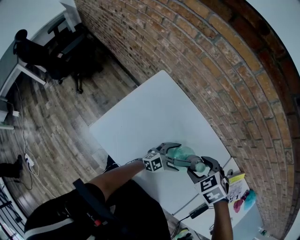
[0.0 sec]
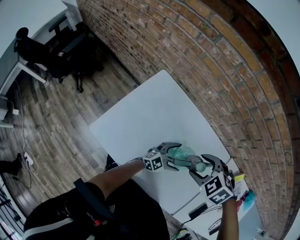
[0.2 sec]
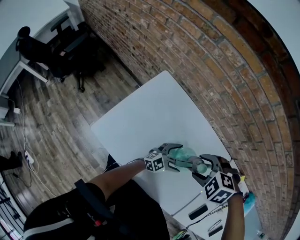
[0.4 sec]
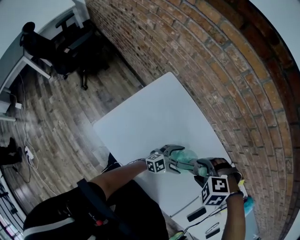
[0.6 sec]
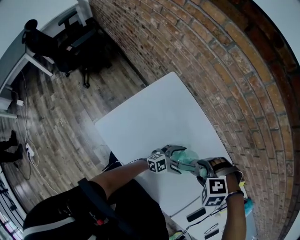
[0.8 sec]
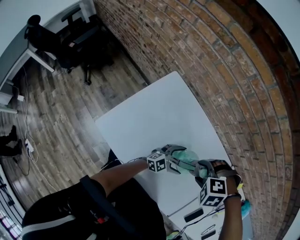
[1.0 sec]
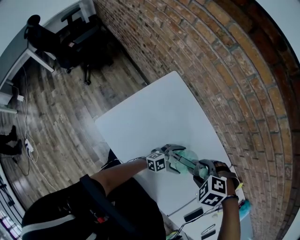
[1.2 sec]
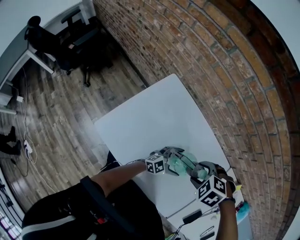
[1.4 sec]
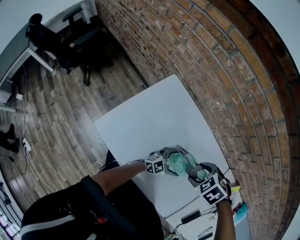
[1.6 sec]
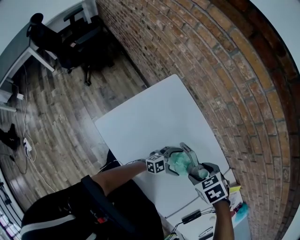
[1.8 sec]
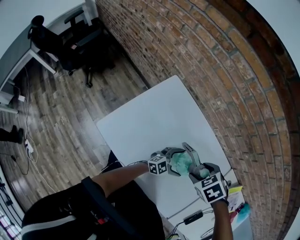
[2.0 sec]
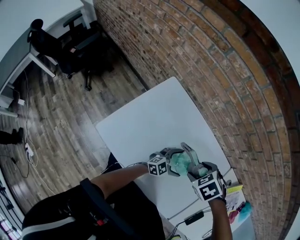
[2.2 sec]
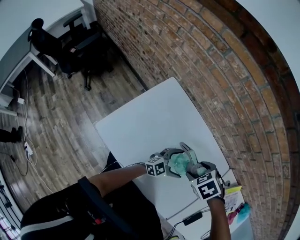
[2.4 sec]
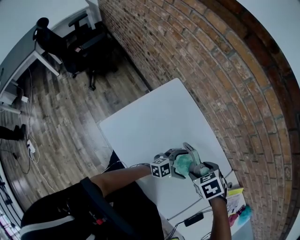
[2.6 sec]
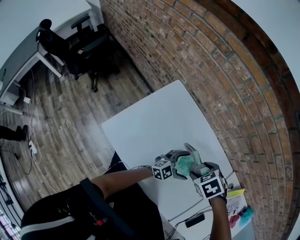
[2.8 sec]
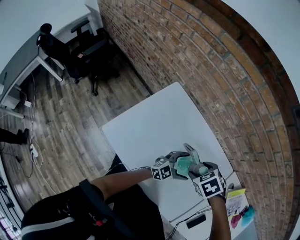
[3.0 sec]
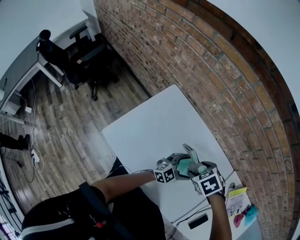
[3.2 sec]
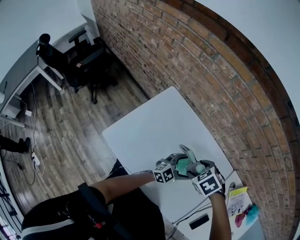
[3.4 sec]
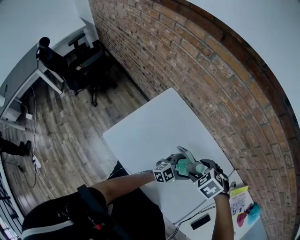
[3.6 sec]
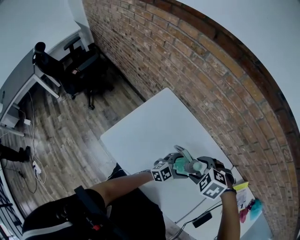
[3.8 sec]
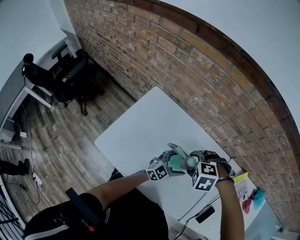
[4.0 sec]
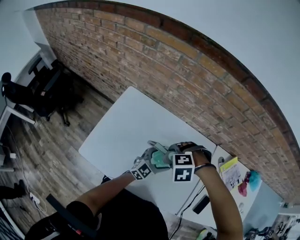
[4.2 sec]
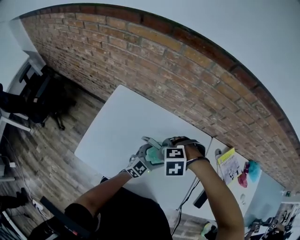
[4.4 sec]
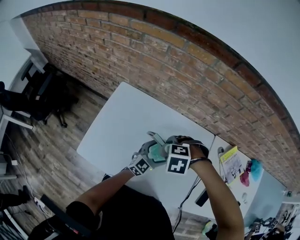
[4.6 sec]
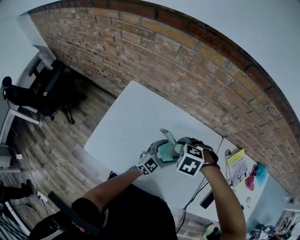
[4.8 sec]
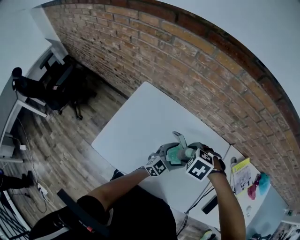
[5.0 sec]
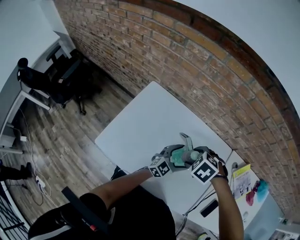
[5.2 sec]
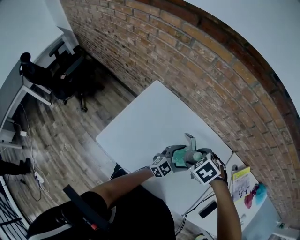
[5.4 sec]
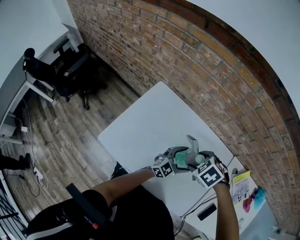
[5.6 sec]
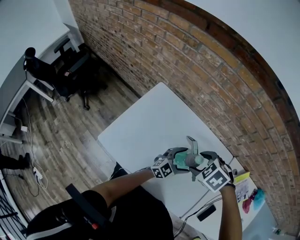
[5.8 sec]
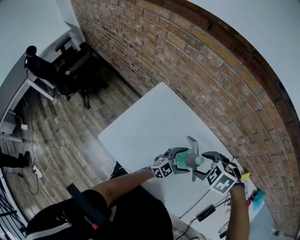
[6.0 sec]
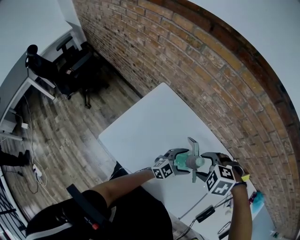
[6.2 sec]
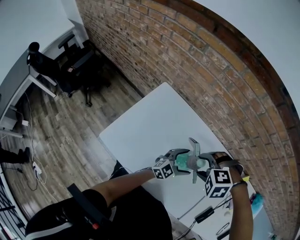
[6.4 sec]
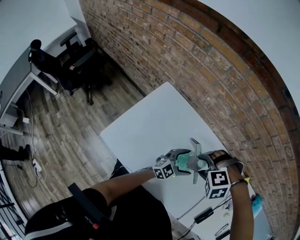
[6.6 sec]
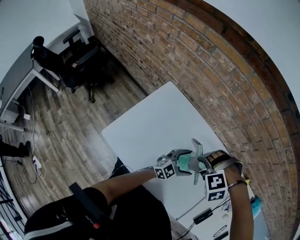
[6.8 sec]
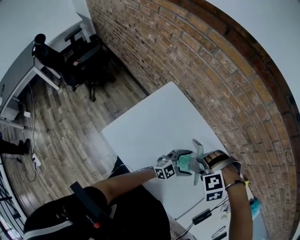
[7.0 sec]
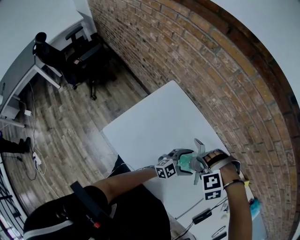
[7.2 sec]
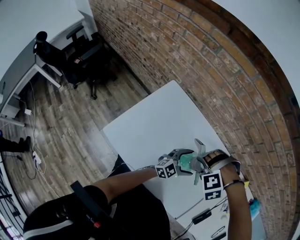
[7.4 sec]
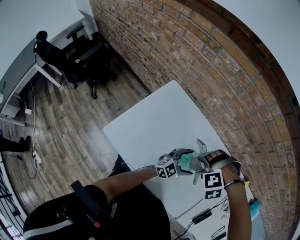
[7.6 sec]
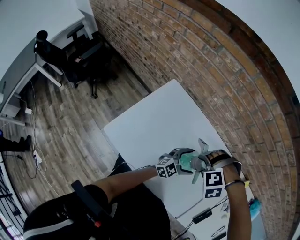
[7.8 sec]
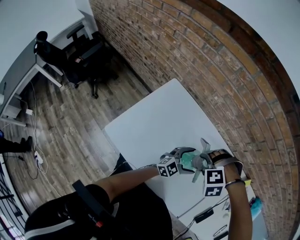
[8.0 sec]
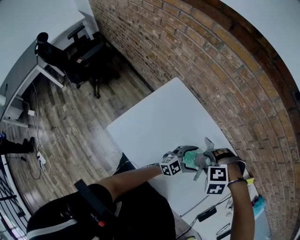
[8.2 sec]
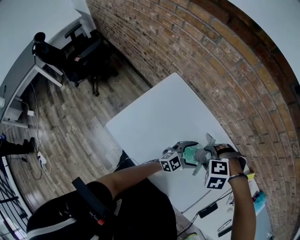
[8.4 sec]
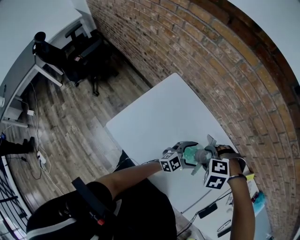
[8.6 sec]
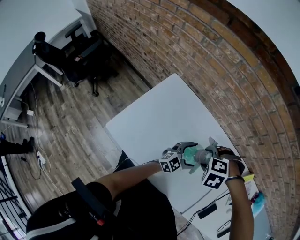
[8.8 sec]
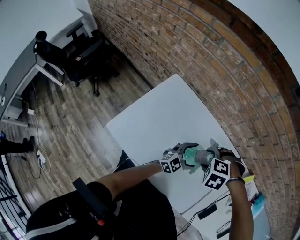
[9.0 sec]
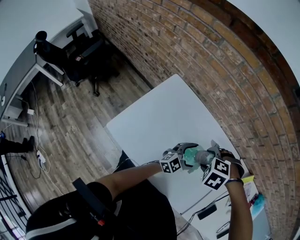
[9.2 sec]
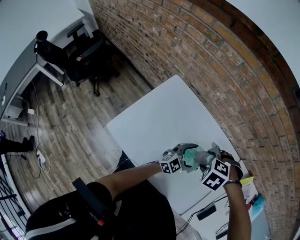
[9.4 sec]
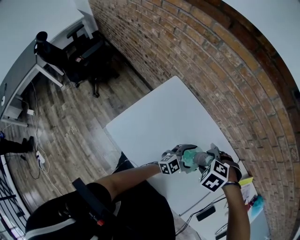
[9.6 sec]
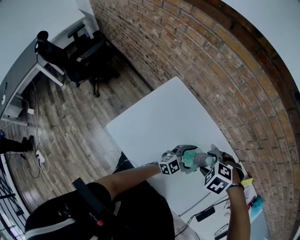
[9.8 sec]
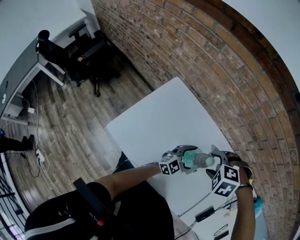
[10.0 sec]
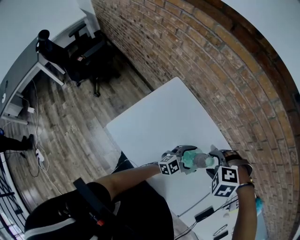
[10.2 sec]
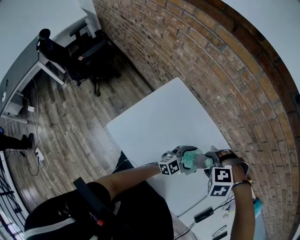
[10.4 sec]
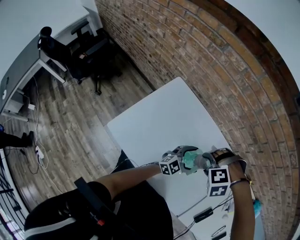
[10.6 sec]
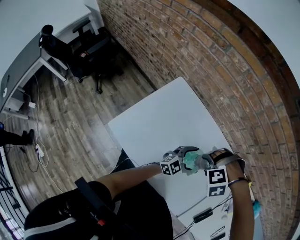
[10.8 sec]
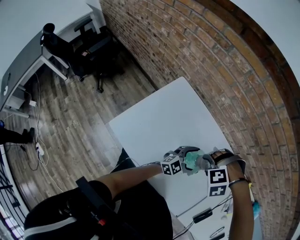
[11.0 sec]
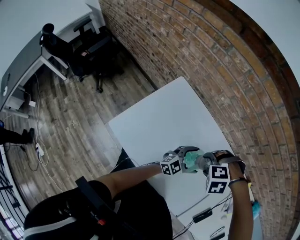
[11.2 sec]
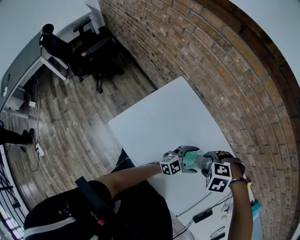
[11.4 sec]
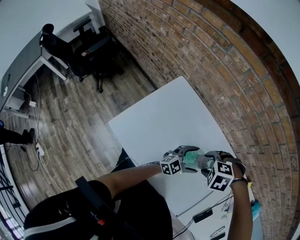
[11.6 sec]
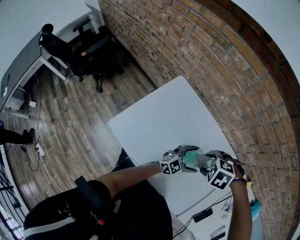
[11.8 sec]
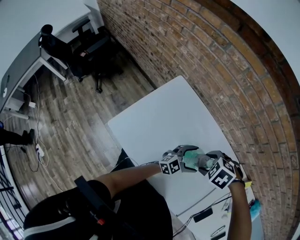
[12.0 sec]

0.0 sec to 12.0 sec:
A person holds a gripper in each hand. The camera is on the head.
1.6 sec to 3.0 sec: The left gripper goes about 5 cm upward.
3.0 sec to 4.4 sec: The right gripper twists approximately 40 degrees counterclockwise, seen from behind.
4.4 sec to 6.0 sec: The right gripper goes about 5 cm upward.
6.0 sec to 7.6 sec: The right gripper rolls counterclockwise, seen from behind, by about 50 degrees.
7.6 sec to 9.0 sec: The right gripper rotates roughly 30 degrees.
9.0 sec to 10.4 sec: The grippers stay close to where they were, moving slightly.
10.4 sec to 12.0 sec: The right gripper changes its angle by some 30 degrees.

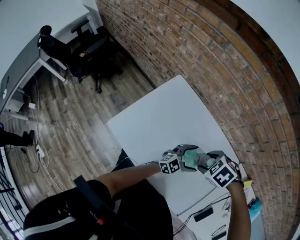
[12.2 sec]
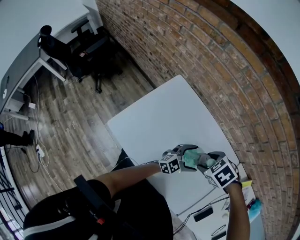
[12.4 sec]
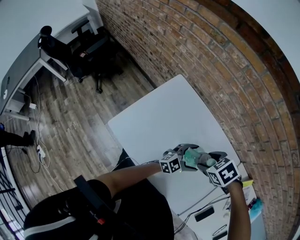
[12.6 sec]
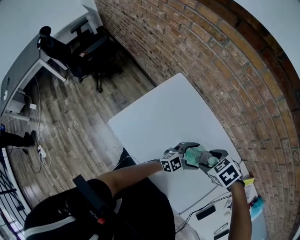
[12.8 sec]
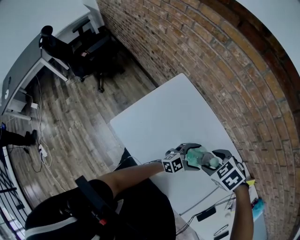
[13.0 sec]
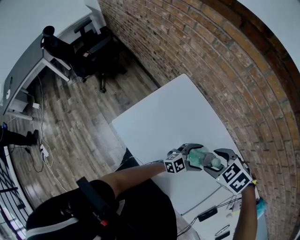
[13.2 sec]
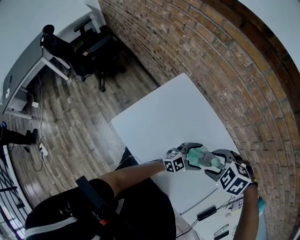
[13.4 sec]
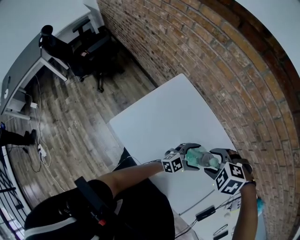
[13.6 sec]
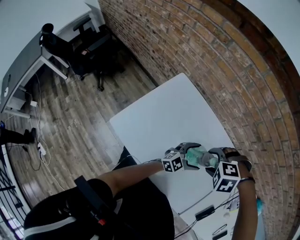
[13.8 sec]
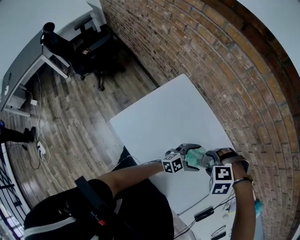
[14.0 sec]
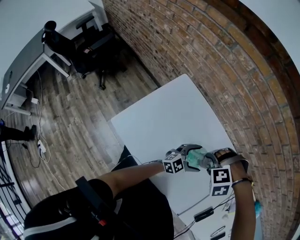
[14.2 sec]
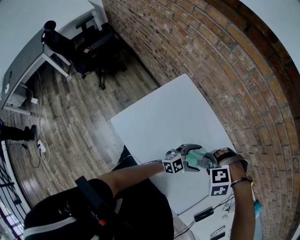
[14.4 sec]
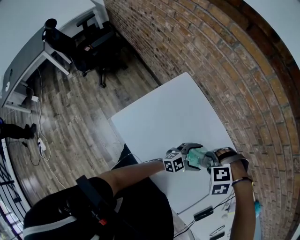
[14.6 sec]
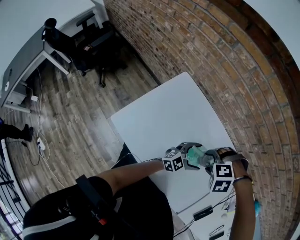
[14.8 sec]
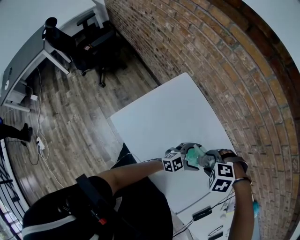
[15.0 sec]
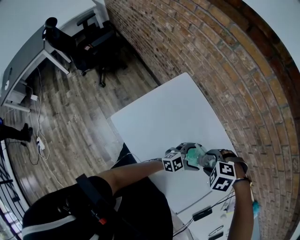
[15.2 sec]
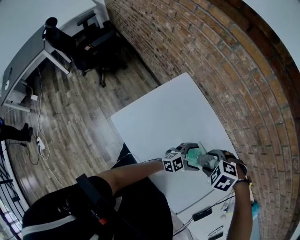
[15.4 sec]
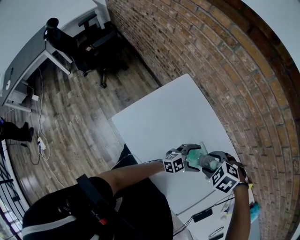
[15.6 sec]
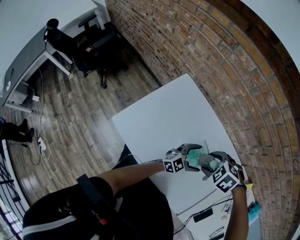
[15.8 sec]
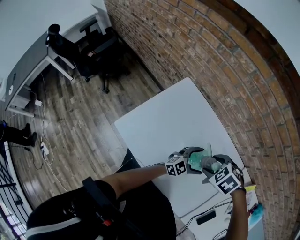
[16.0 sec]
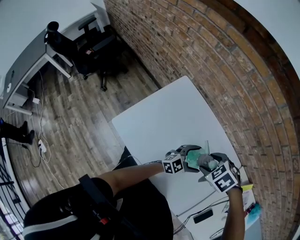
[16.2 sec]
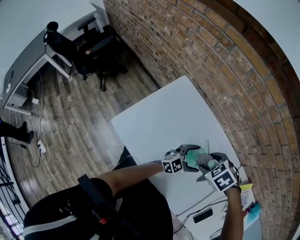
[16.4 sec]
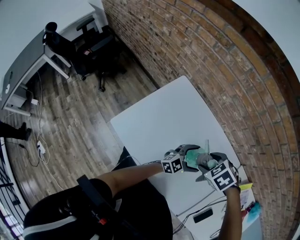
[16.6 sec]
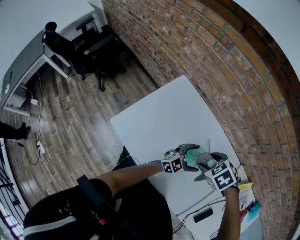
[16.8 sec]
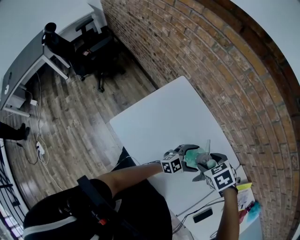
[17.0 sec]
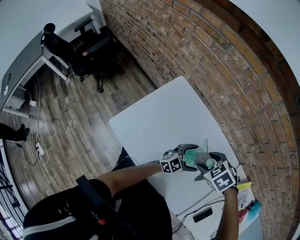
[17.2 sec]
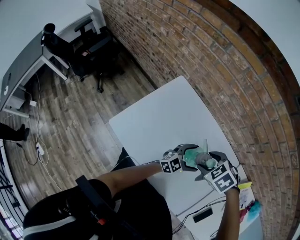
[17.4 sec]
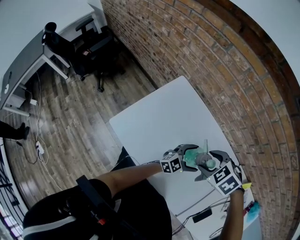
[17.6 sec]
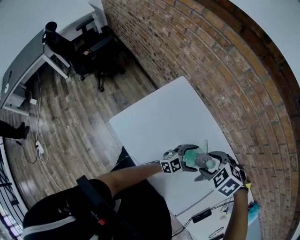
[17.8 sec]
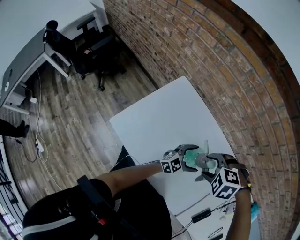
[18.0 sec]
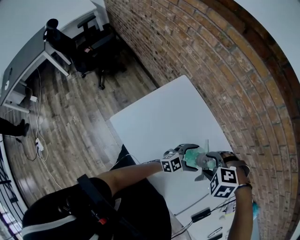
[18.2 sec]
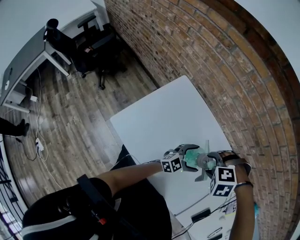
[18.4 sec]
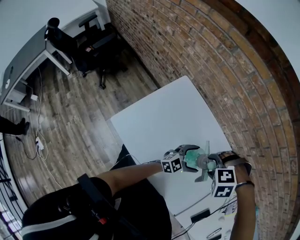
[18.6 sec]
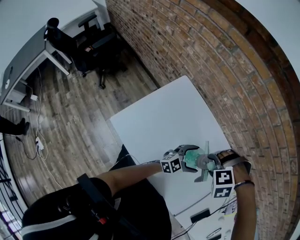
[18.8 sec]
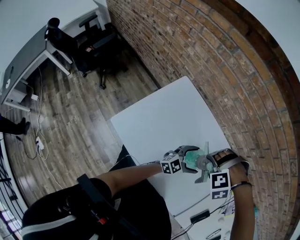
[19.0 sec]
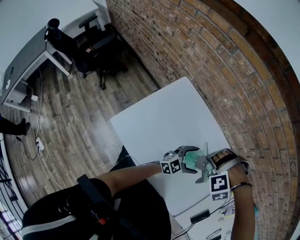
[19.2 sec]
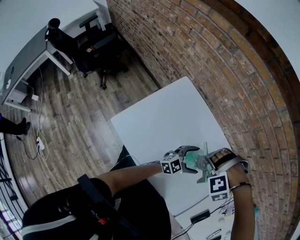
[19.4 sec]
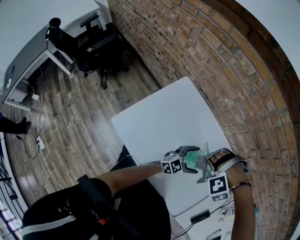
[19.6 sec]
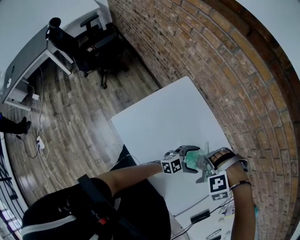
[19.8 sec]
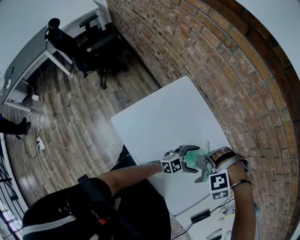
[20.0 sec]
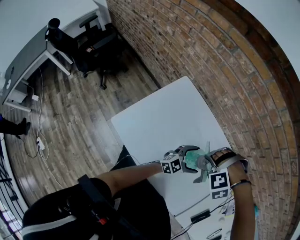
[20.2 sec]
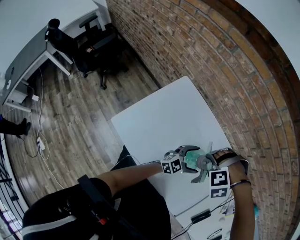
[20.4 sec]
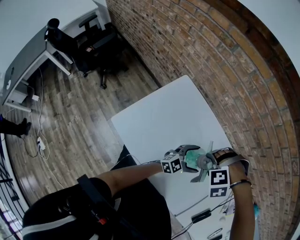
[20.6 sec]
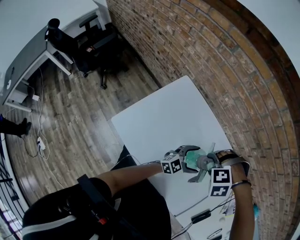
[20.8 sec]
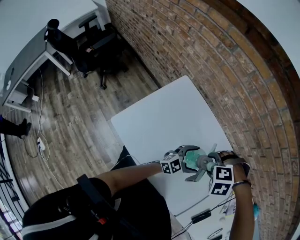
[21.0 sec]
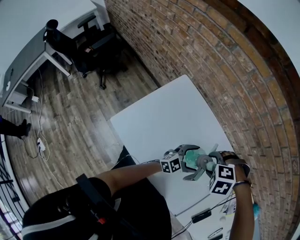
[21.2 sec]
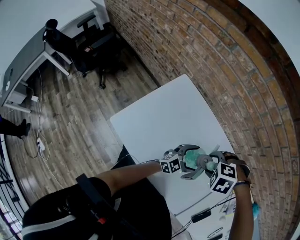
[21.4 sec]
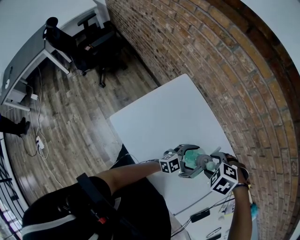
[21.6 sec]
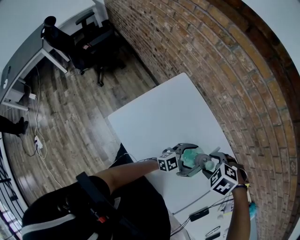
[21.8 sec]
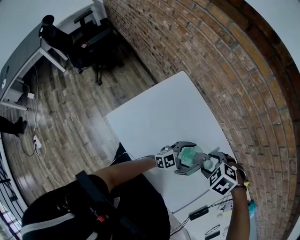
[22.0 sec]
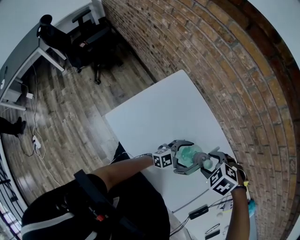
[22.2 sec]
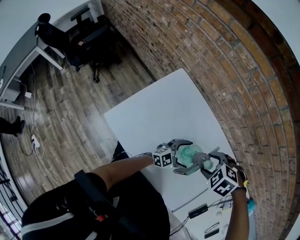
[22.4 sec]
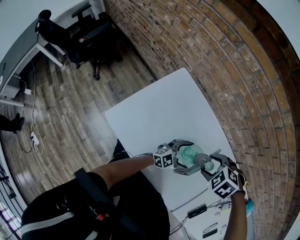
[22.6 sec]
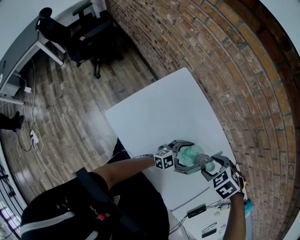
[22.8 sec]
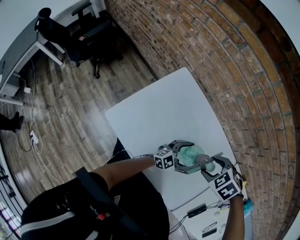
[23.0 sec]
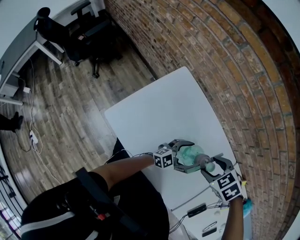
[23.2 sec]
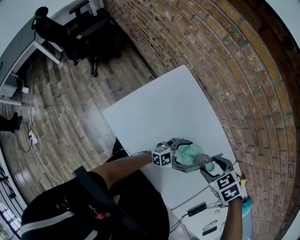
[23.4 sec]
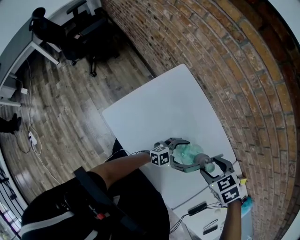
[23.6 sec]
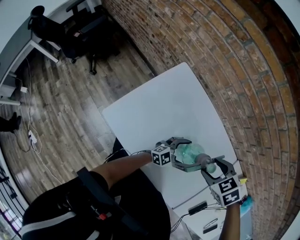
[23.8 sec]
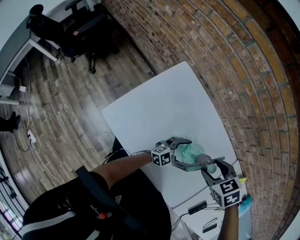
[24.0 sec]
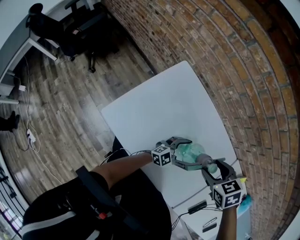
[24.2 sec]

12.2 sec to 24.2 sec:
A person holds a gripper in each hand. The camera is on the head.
12.2 sec to 13.8 sec: The right gripper rotates about 40 degrees.
15.2 sec to 16.6 sec: The right gripper rolls clockwise, seen from behind, by approximately 40 degrees.
16.6 sec to 18.2 sec: The right gripper rolls counterclockwise, seen from behind, by about 40 degrees.
18.2 sec to 19.8 sec: The right gripper rotates about 40 degrees.
19.8 sec to 21.2 sec: The right gripper turns by some 40 degrees.
21.2 sec to 22.6 sec: The right gripper changes its angle by some 30 degrees.
22.6 sec to 24.2 sec: The right gripper swivels some 40 degrees.
